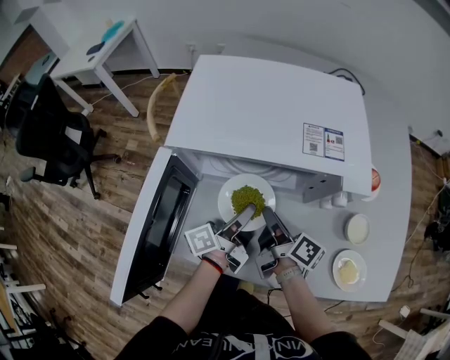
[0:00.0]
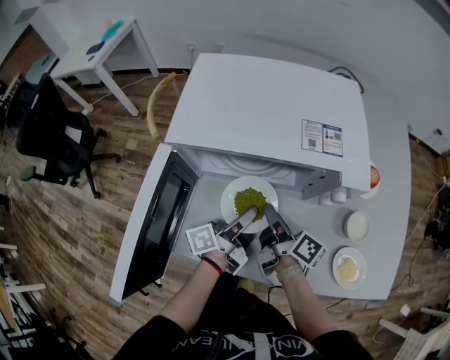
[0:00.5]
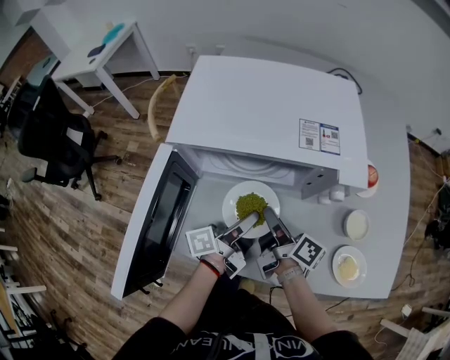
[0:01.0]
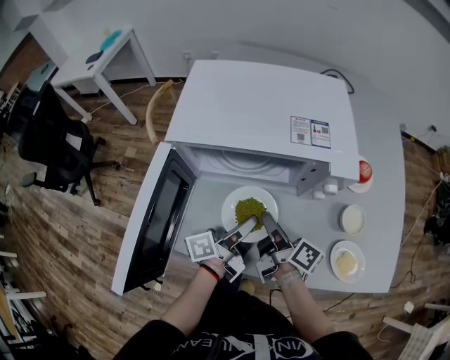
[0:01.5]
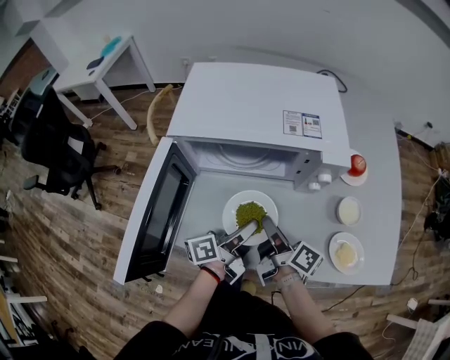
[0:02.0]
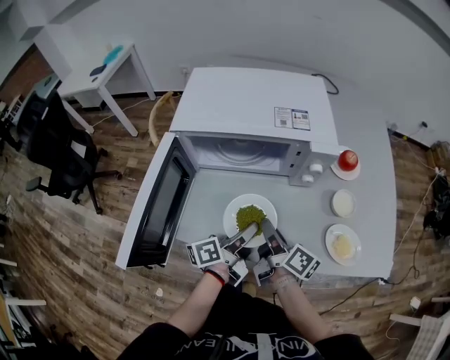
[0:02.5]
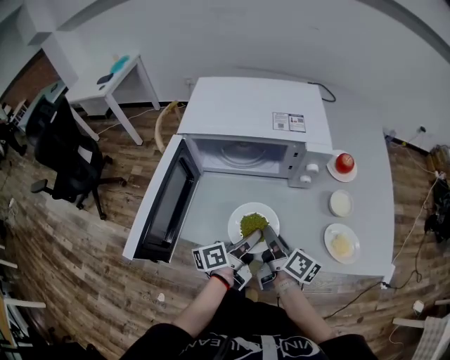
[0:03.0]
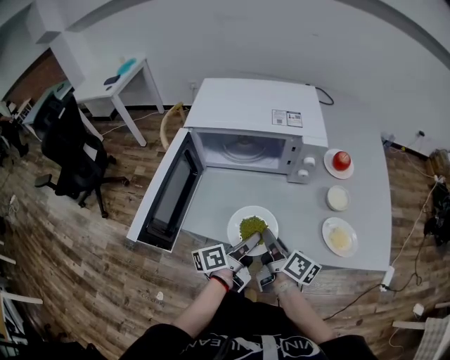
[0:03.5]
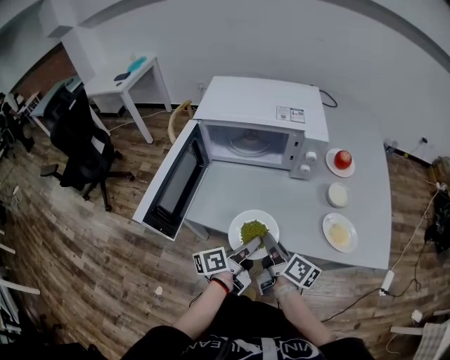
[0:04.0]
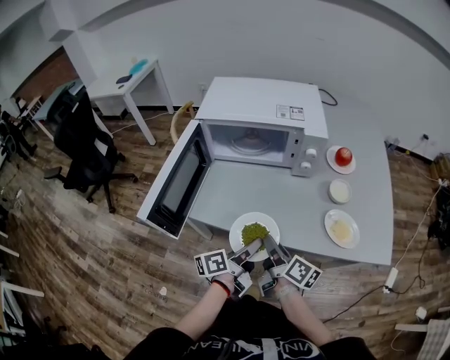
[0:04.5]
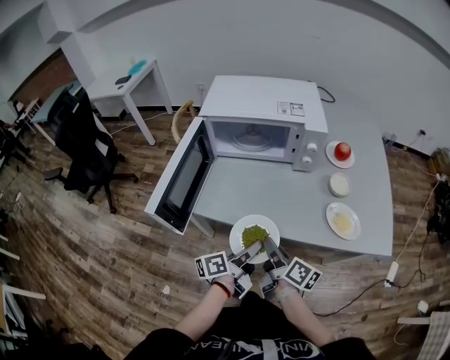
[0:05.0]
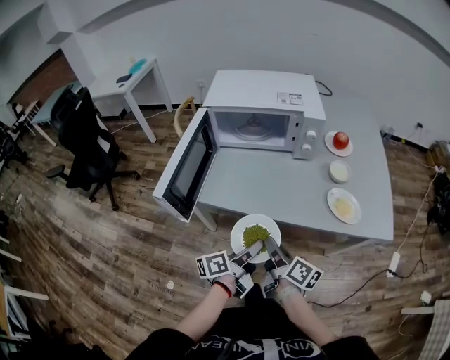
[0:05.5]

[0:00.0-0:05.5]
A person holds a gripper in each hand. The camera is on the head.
0:00.0 to 0:02.0: The grippers both shift backward by approximately 10 cm.
0:02.0 to 0:03.5: The grippers both shift backward by roughly 10 cm.
0:03.5 to 0:05.5: The two grippers go roughly 15 cm backward.

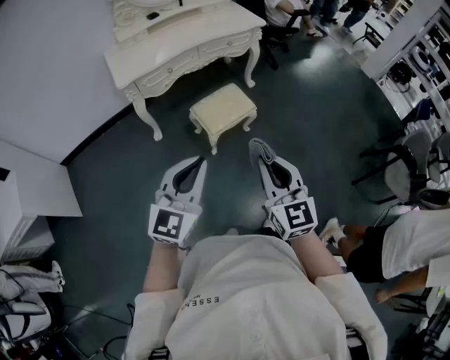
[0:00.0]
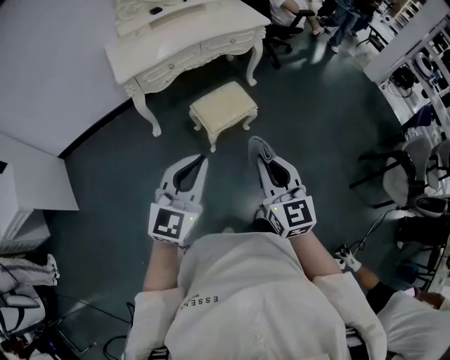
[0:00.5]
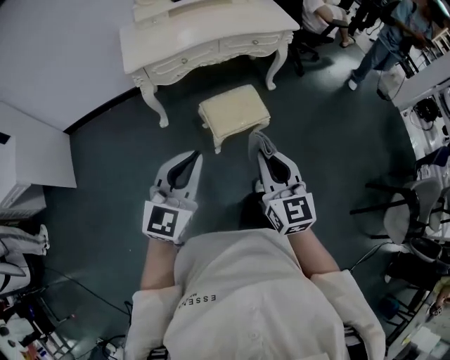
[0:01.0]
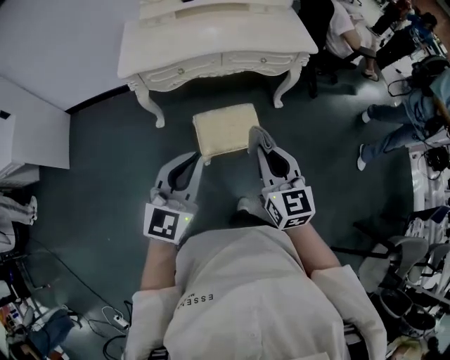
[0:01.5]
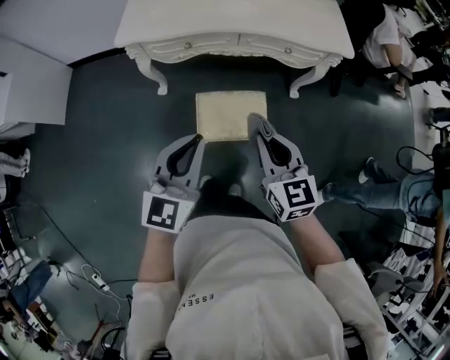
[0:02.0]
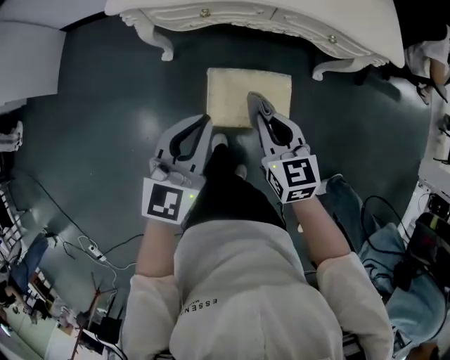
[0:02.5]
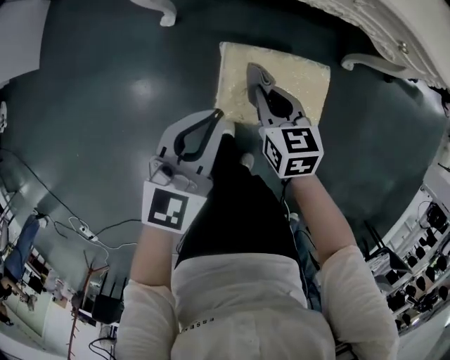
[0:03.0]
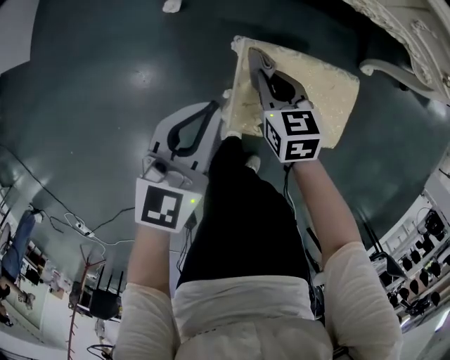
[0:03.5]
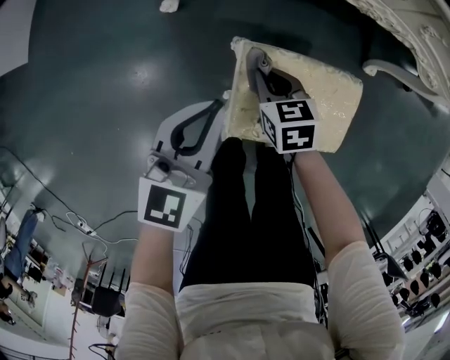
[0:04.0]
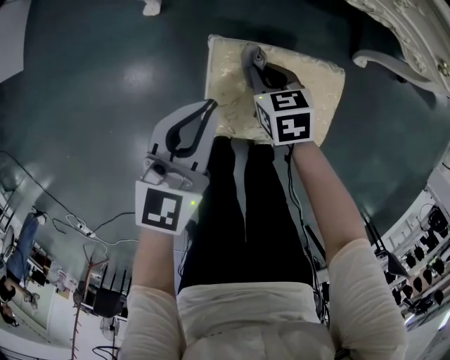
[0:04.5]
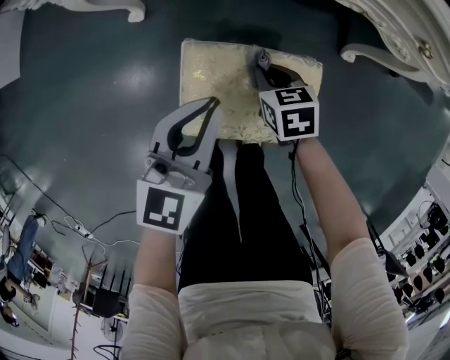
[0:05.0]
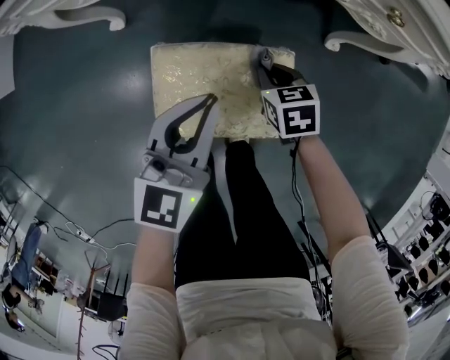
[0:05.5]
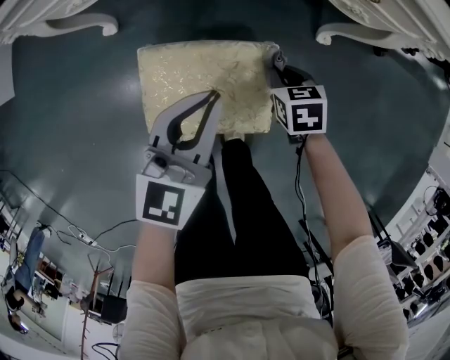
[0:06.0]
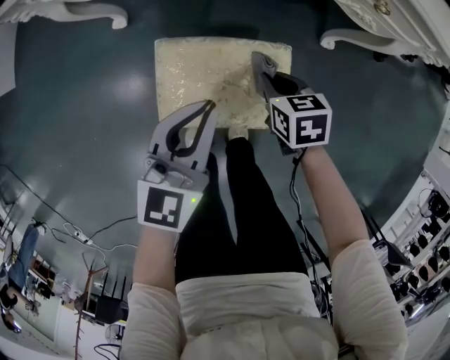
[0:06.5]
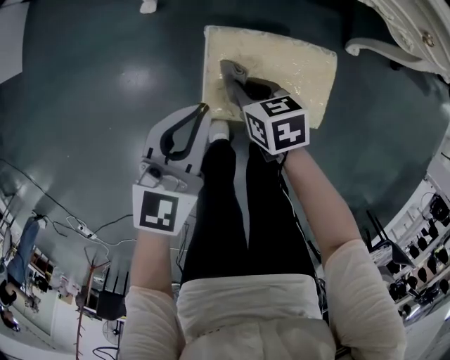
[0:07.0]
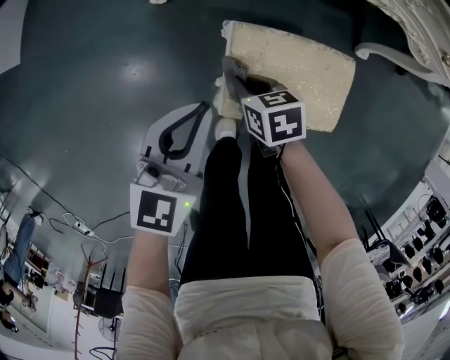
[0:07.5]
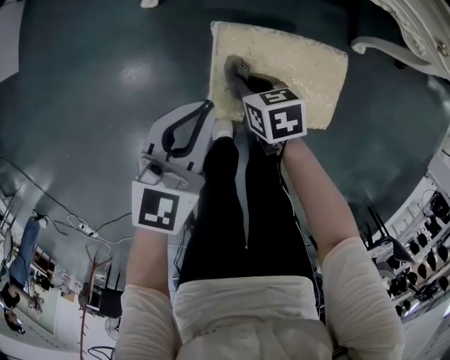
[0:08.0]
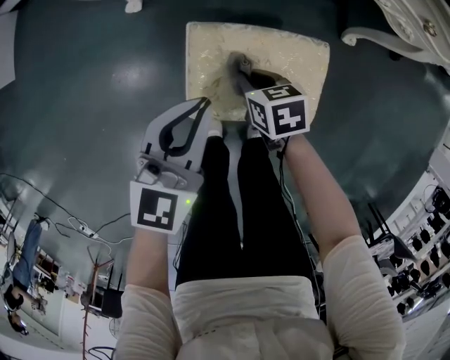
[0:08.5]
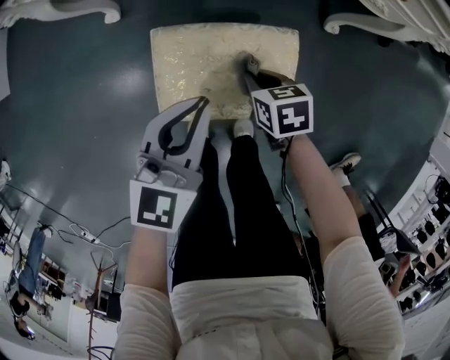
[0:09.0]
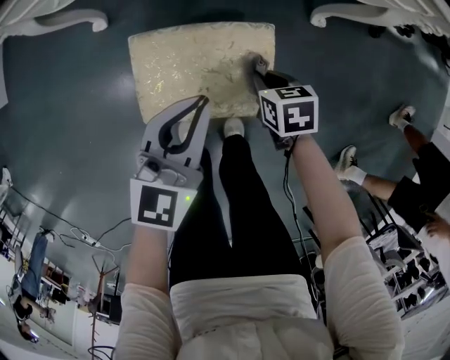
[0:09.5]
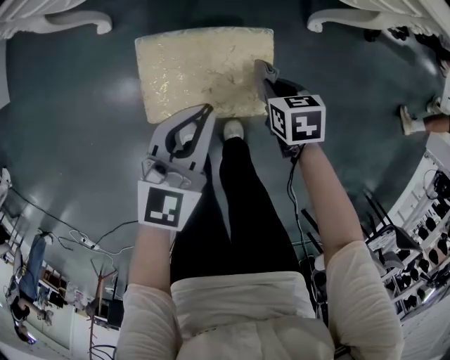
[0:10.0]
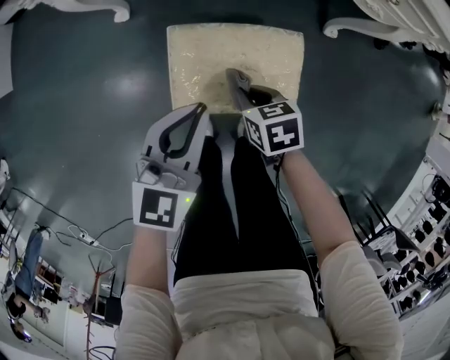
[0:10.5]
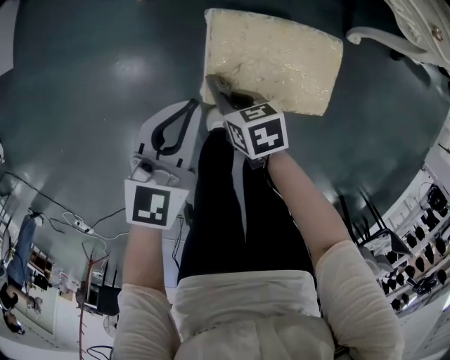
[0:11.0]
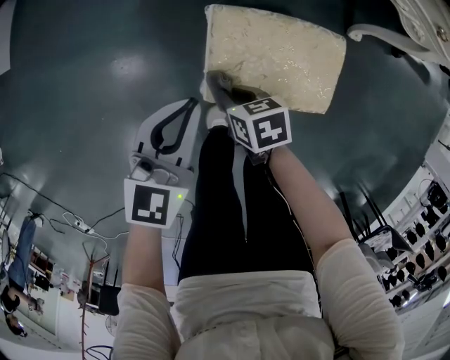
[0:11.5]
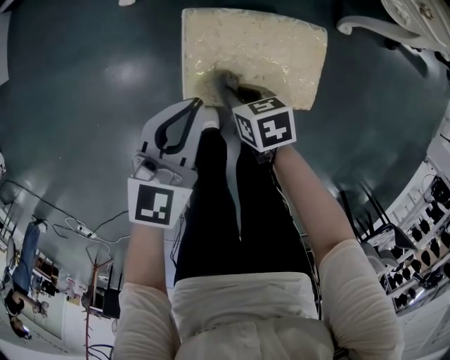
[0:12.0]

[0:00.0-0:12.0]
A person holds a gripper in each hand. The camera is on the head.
0:00.0 to 0:02.0: The left gripper changes place by roughly 40 cm, and rotates some 30 degrees. Meanwhile the right gripper ends up some 50 cm from where it was, and turns by roughly 40 degrees.
0:02.0 to 0:04.0: The grippers both shift downward and forward by about 50 cm. The right gripper angles its fingers downward, by some 30 degrees.
0:04.0 to 0:06.0: The grippers both shift to the right by approximately 25 cm.
0:06.0 to 0:08.0: Both grippers move to the left, approximately 25 cm.
0:08.0 to 0:10.0: The grippers both shift to the right by roughly 25 cm.
0:10.0 to 0:12.0: The left gripper goes roughly 15 cm to the left, while the right gripper is displaced to the left by roughly 20 cm.

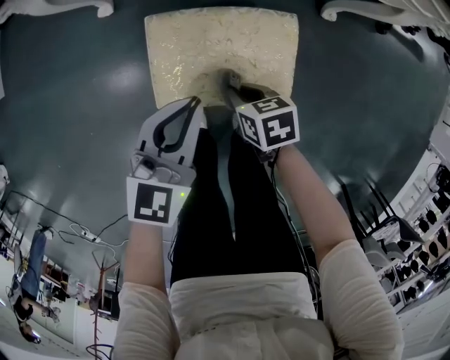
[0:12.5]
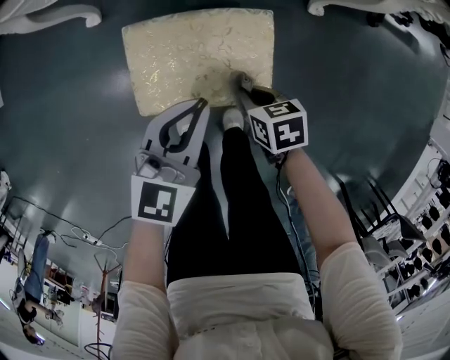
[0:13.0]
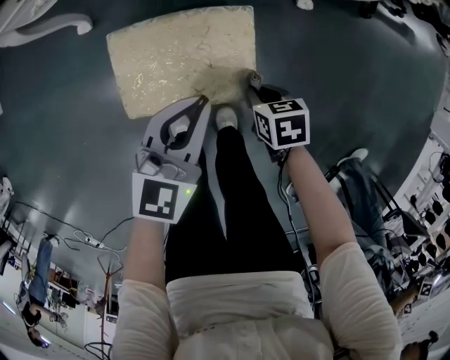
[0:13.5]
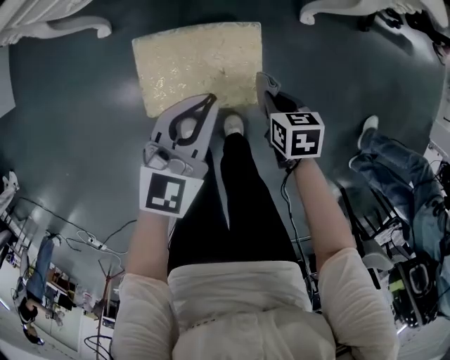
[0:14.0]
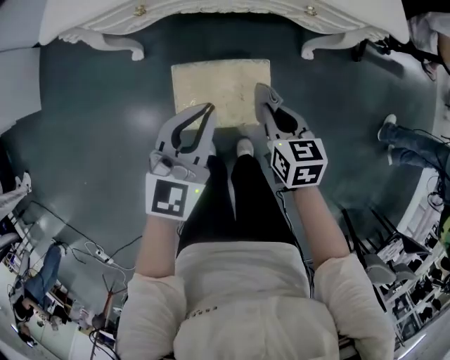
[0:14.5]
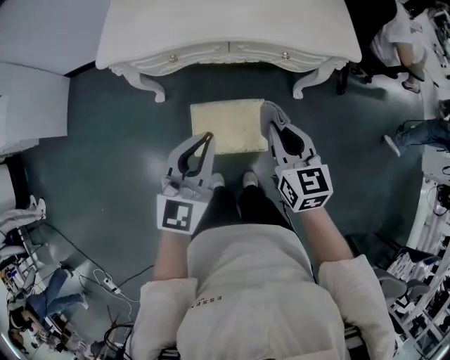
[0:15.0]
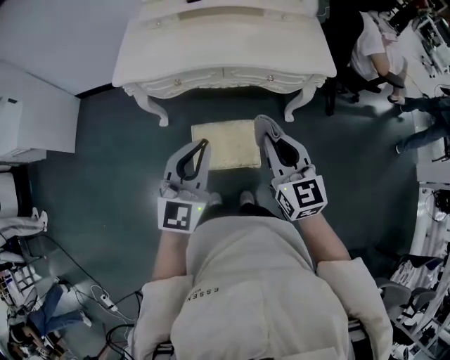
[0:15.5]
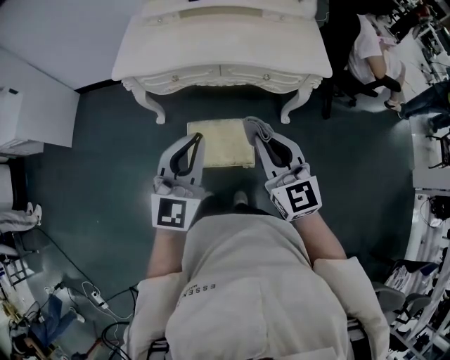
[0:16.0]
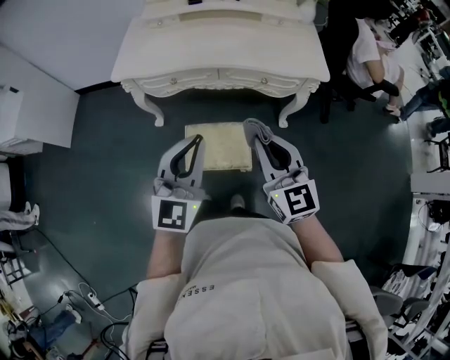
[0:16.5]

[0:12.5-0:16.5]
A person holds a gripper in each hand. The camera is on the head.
0:12.5 to 0:14.5: The right gripper heads upward and to the right, covering some 25 cm, and rotates about 30 degrees; the left gripper travels upward by about 20 cm.
0:14.5 to 0:16.5: The left gripper travels upward and backward by about 25 cm, and turns by roughly 20 degrees. Meanwhile the right gripper travels upward by about 35 cm, and points its fingers roughly 40 degrees further upward.

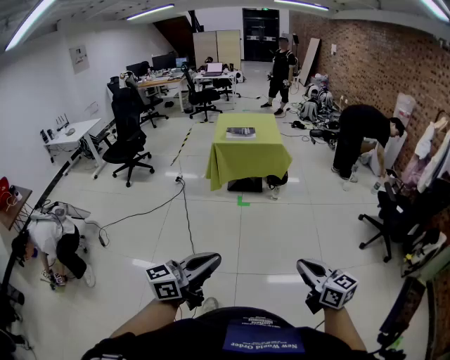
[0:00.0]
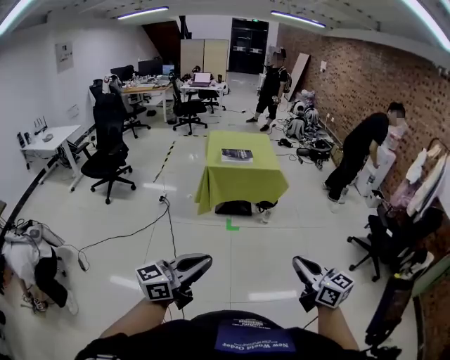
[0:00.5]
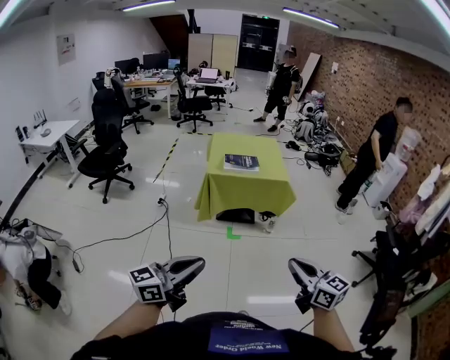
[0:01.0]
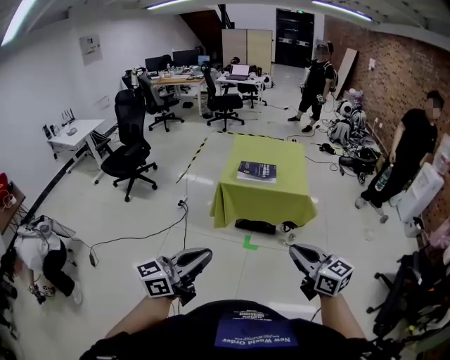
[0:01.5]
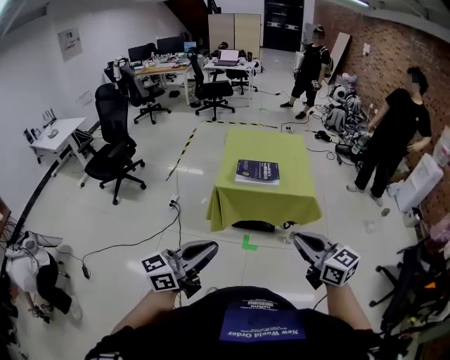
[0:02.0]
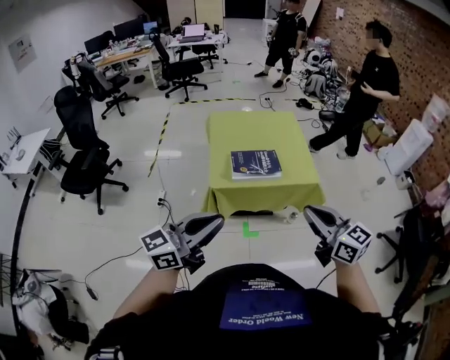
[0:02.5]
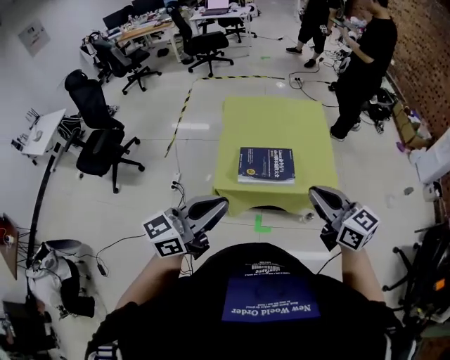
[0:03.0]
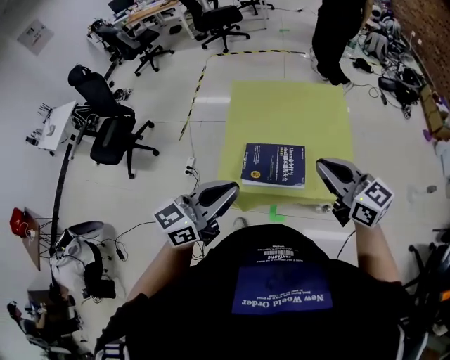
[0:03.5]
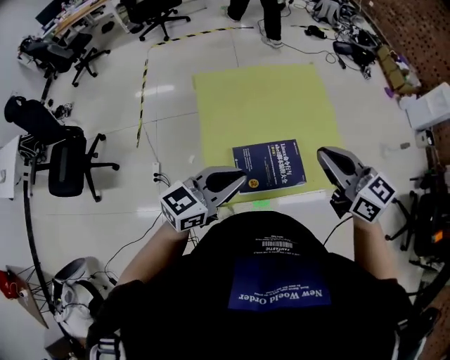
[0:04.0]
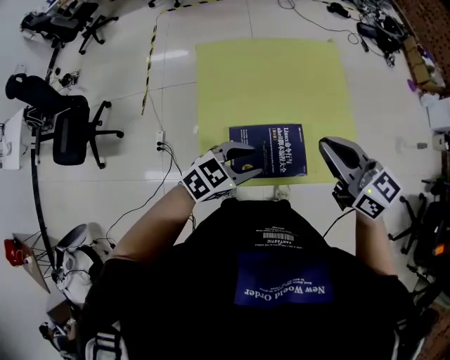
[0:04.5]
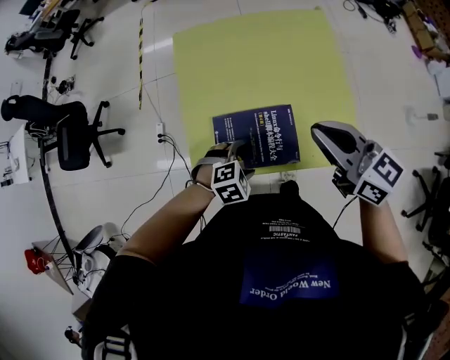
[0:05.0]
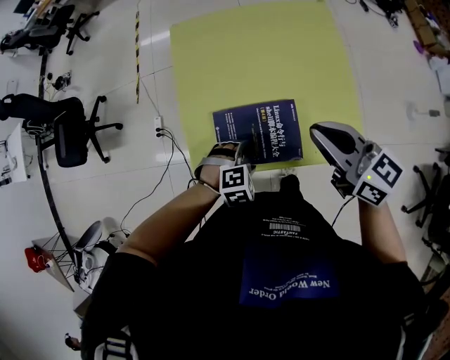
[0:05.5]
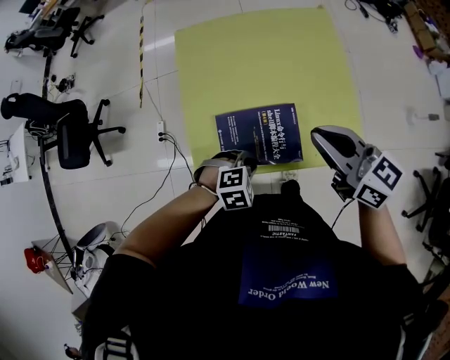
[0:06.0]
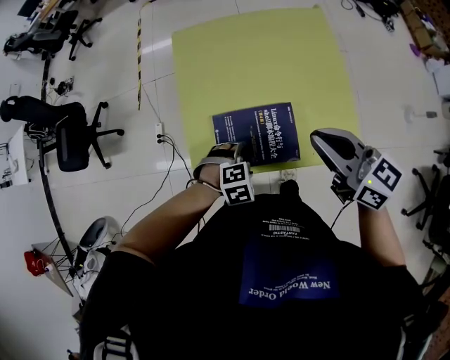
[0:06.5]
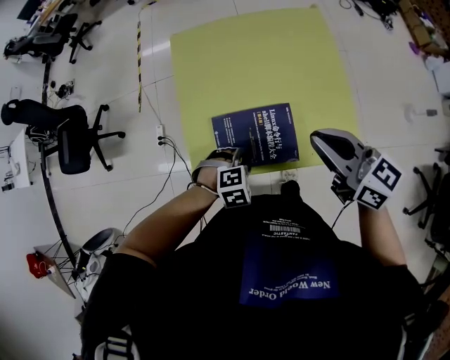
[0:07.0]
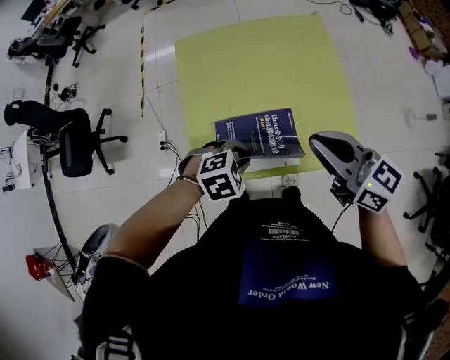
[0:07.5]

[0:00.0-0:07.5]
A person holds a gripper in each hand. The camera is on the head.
0:00.0 to 0:02.0: The two grippers travel together, forward, some 70 cm.
0:02.0 to 0:04.0: The two grippers travel together, forward, some 60 cm. The left gripper changes its angle by approximately 30 degrees.
0:04.0 to 0:05.5: The right gripper travels downward by roughly 10 cm; the left gripper travels downward by roughly 25 cm, tips its fingers downward by some 60 degrees, and opens up.
0:05.5 to 0:07.5: The left gripper travels upward by some 10 cm, and closes up.
